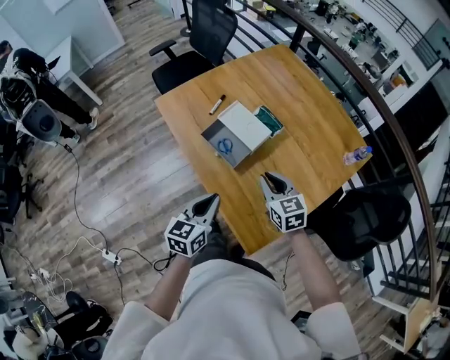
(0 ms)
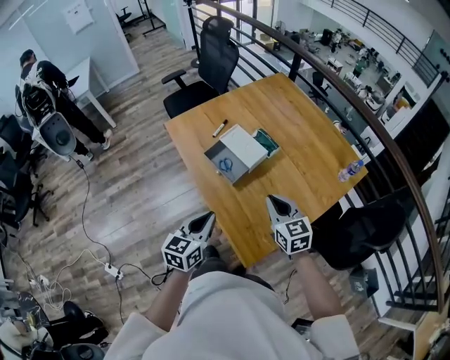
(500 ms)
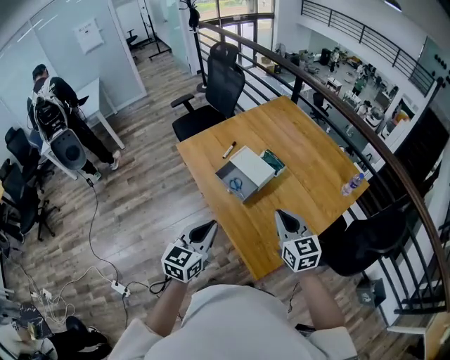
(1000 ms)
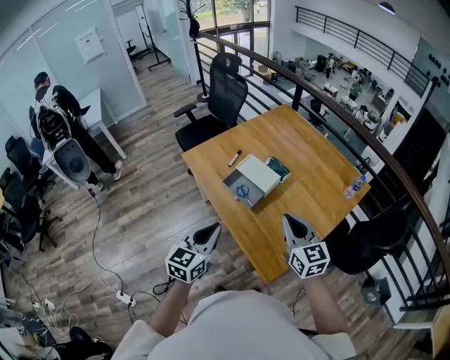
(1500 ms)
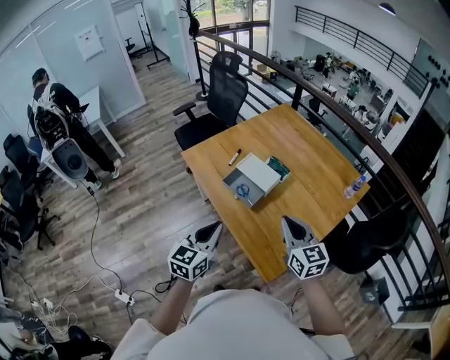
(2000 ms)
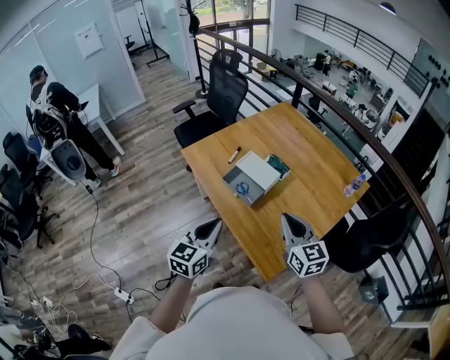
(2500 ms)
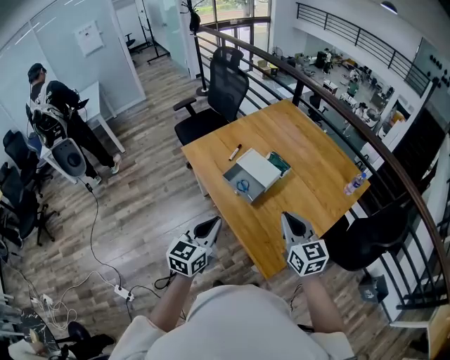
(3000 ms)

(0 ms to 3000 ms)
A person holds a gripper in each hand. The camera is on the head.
0 ms - 1500 ms: The left gripper is displaced upward, backward and to the left by some 15 cm. The right gripper is displaced upward and backward by some 20 cm, and changes its angle by approximately 20 degrees.
1500 ms - 3000 ms: The grippers make only small movements.

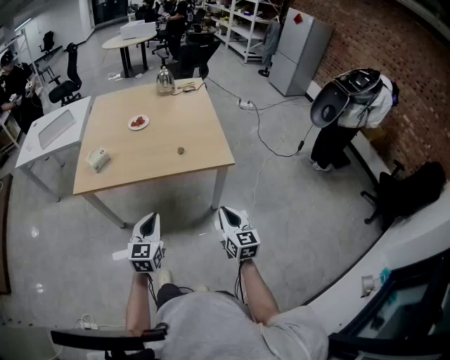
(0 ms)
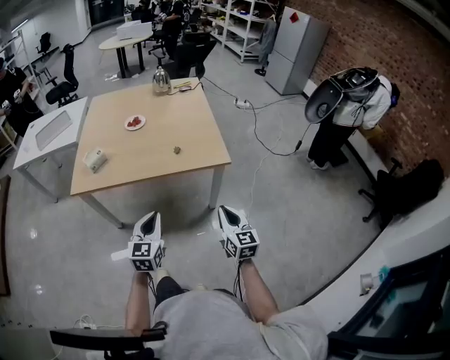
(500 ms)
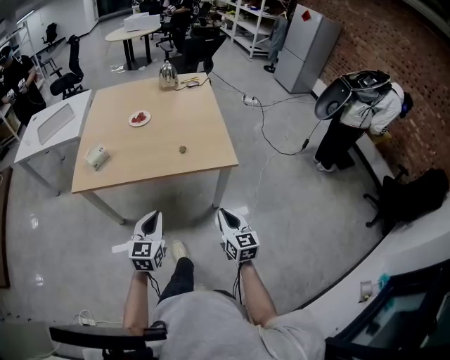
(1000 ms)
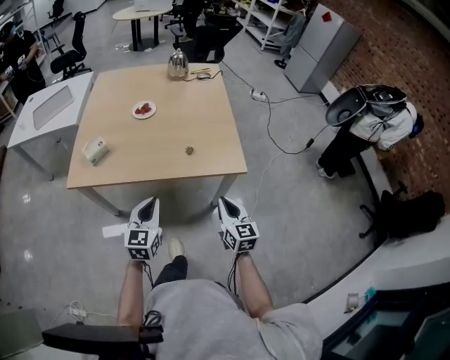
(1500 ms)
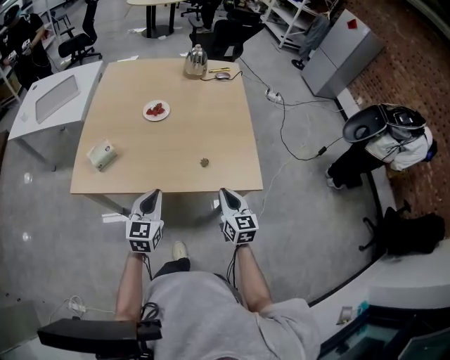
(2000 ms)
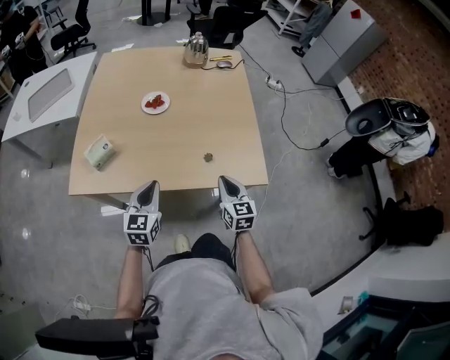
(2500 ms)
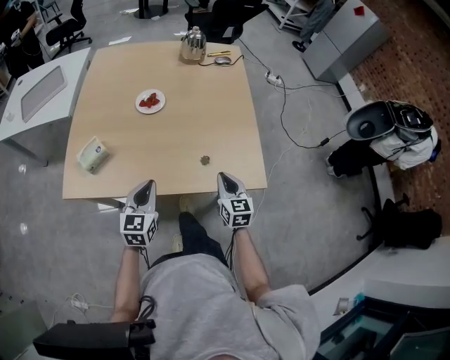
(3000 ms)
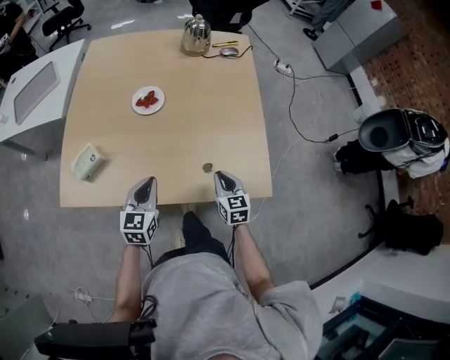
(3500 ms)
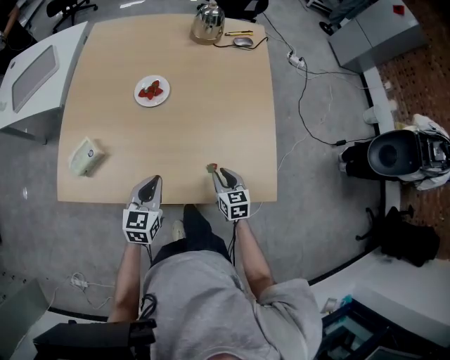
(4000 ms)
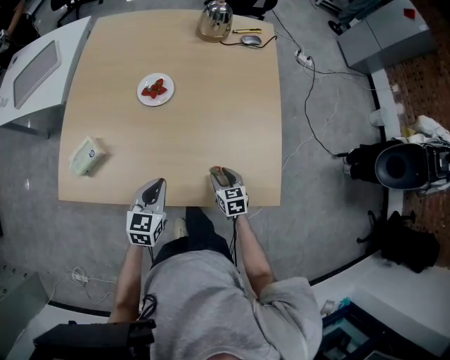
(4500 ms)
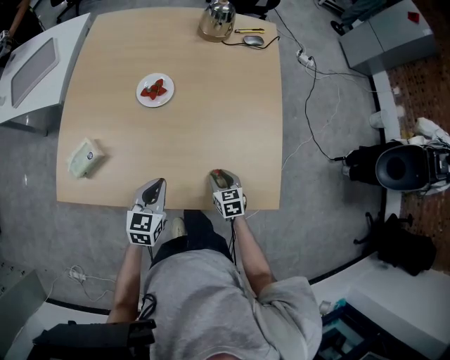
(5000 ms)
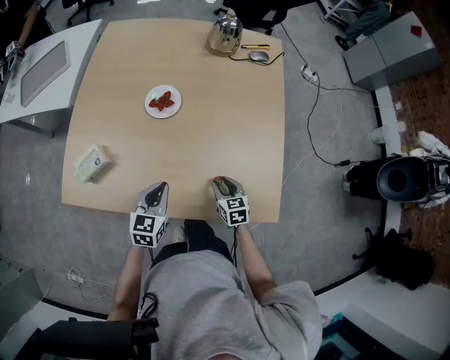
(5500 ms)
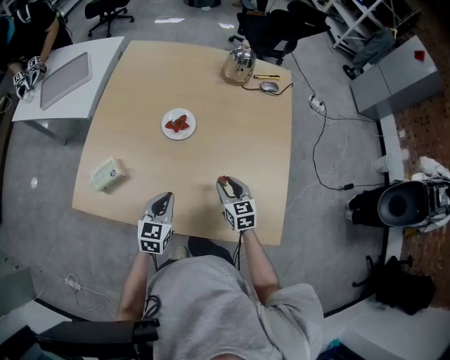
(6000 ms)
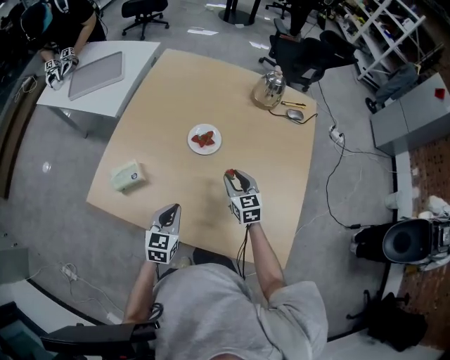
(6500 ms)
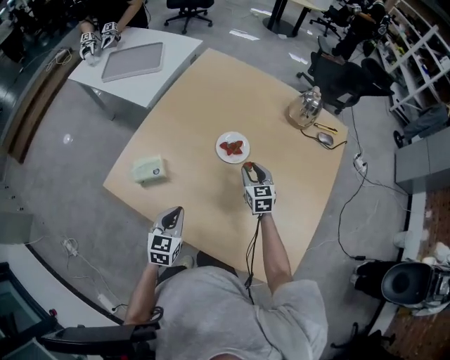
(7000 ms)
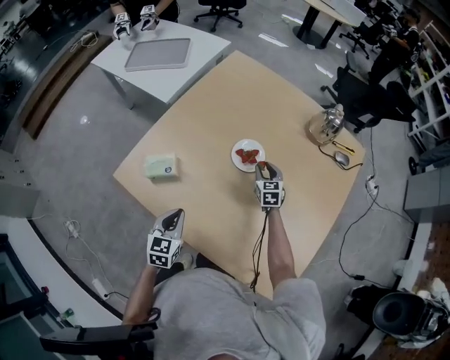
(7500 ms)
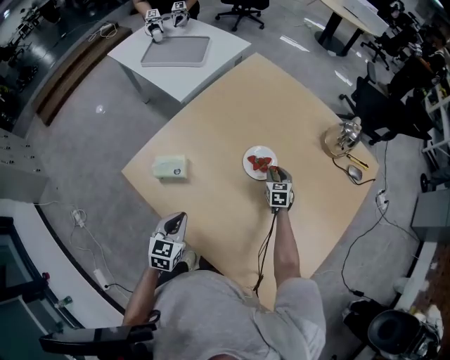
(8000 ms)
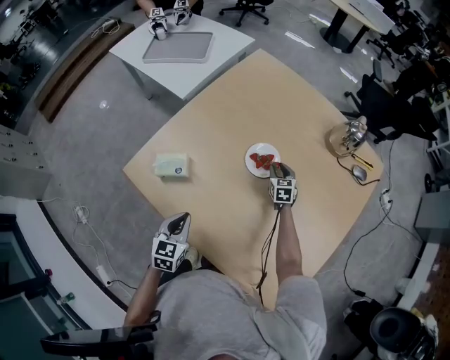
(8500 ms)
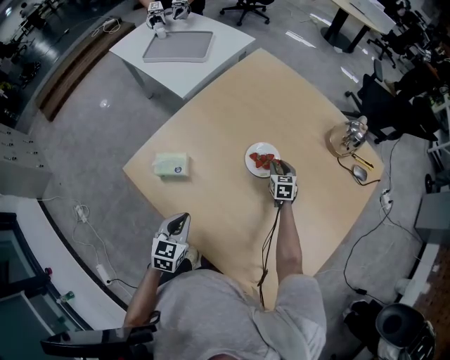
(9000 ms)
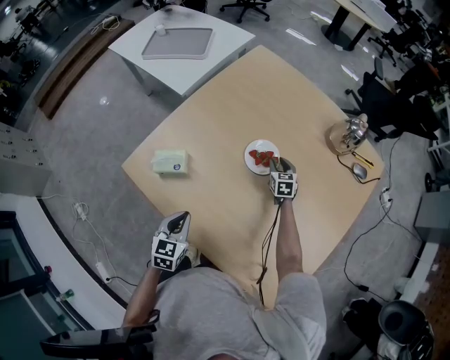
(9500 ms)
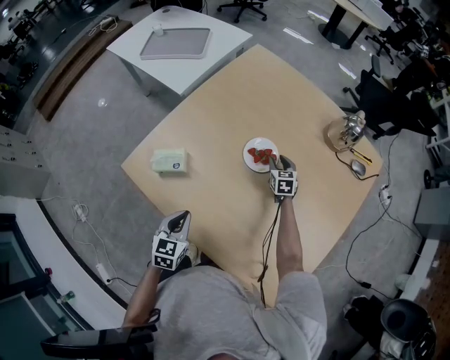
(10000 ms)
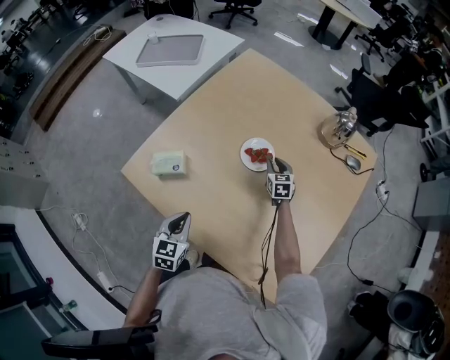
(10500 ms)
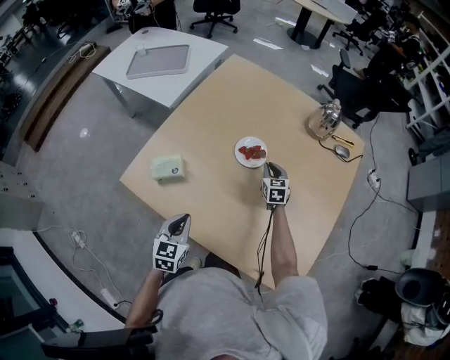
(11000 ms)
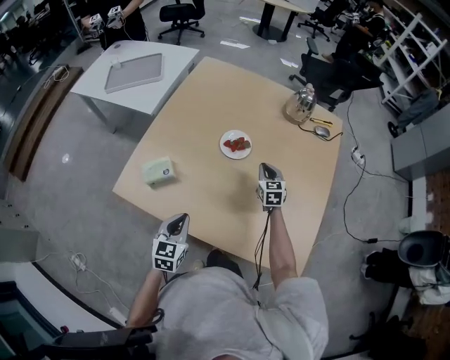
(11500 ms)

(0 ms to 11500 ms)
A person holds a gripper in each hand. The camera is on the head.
0 ms - 2000 ms: Both grippers travel together forward, some 25 cm.
2000 ms - 4000 ms: Both grippers travel together forward and downward, some 20 cm. The right gripper swivels roughly 20 degrees, and opens.
4000 ms - 6000 ms: The left gripper moves some 5 cm; the right gripper shifts roughly 10 cm forward and upward.
6000 ms - 7500 ms: The right gripper heads forward, covering approximately 25 cm, while the left gripper goes some 10 cm to the left, and changes its angle by approximately 30 degrees.
7500 ms - 9500 ms: The right gripper travels forward and downward by some 10 cm.
9500 ms - 11500 ms: The right gripper heads backward and upward, covering roughly 20 cm, and closes its fingers. The left gripper moves some 5 cm.

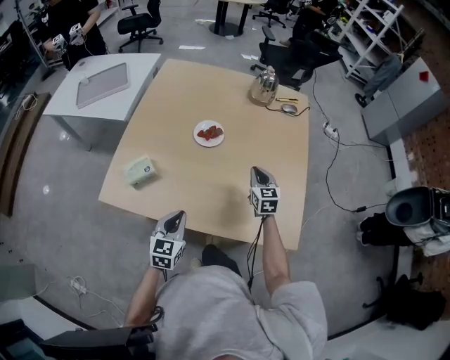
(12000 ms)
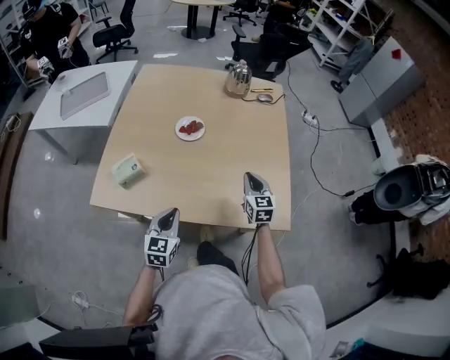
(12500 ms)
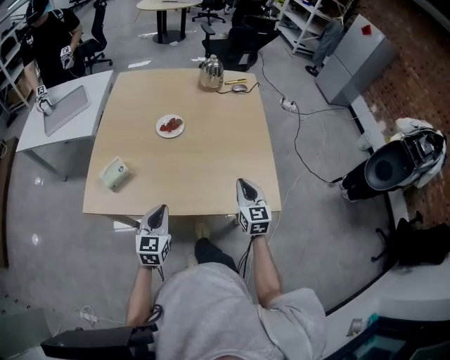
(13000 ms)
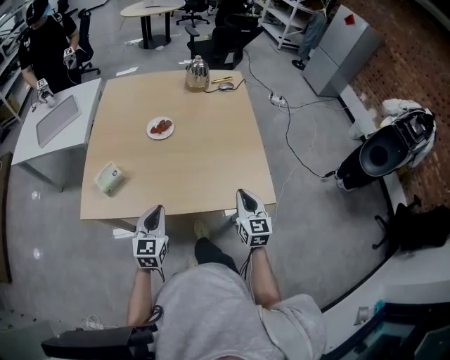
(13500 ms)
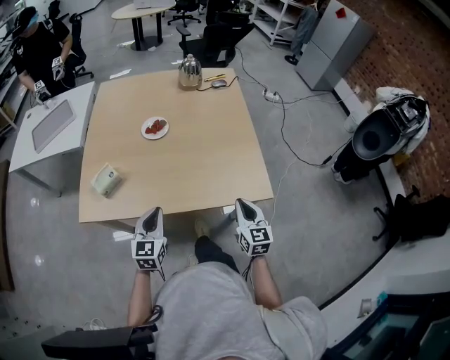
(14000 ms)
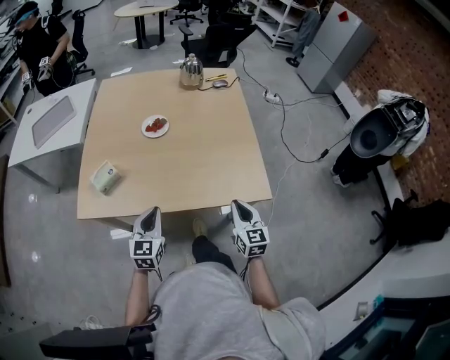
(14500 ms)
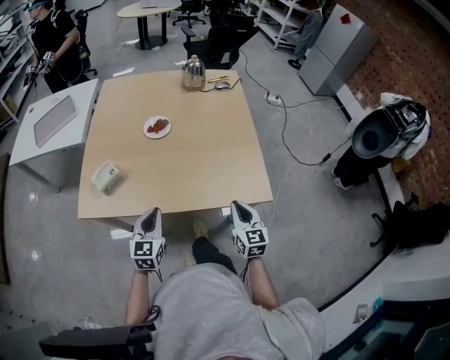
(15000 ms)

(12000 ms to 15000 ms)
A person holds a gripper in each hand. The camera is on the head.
12000 ms - 13500 ms: The left gripper travels backward by about 5 cm. Meanwhile the right gripper goes some 25 cm backward.
13500 ms - 15000 ms: The right gripper changes place by about 5 cm.

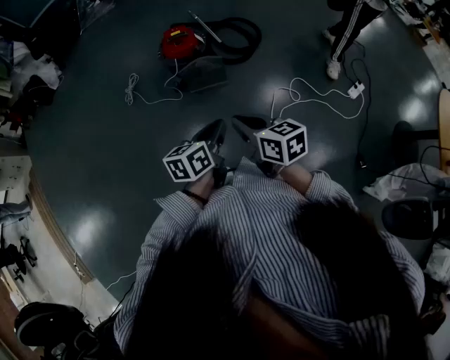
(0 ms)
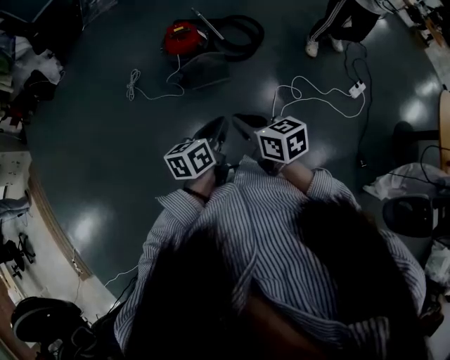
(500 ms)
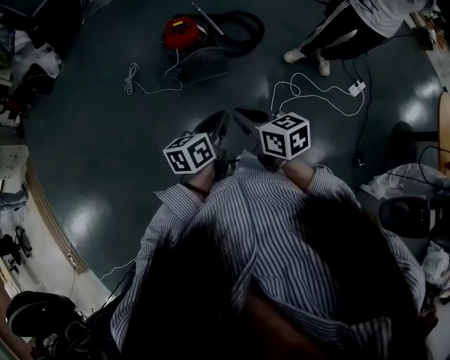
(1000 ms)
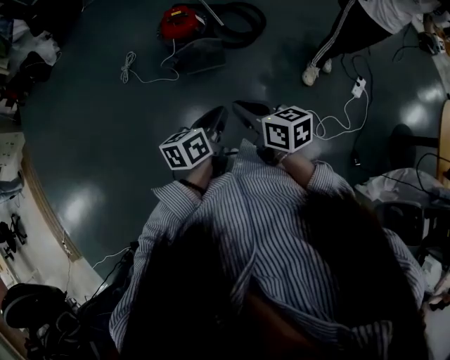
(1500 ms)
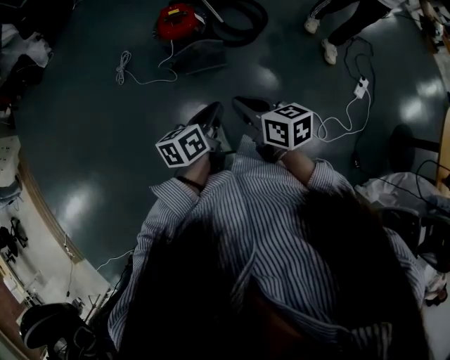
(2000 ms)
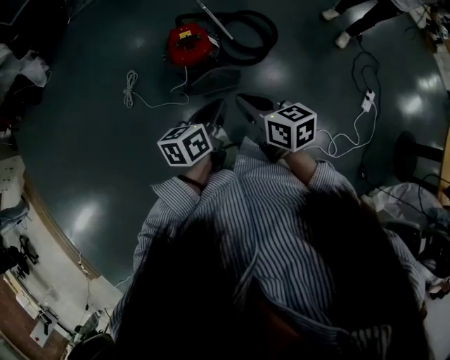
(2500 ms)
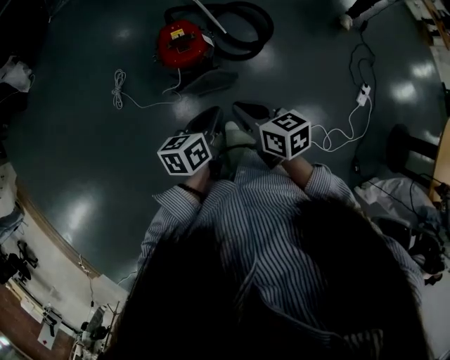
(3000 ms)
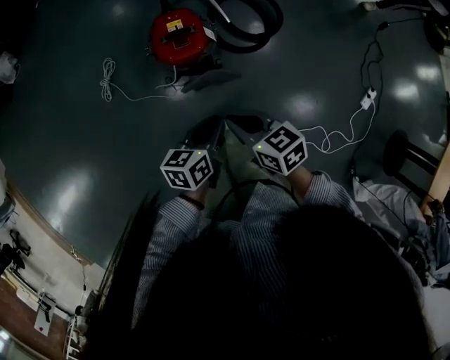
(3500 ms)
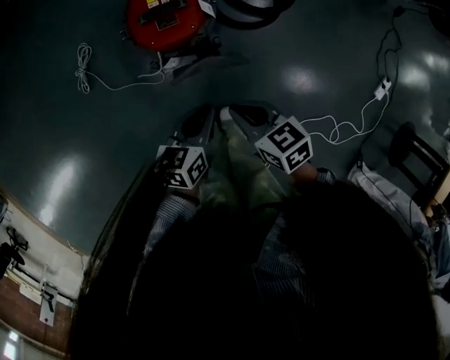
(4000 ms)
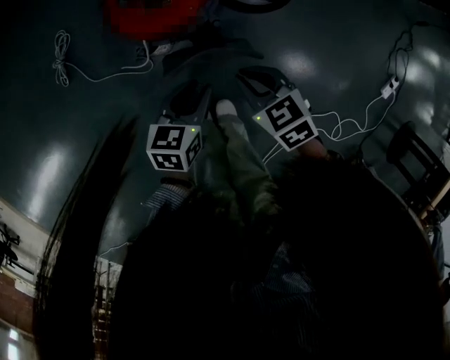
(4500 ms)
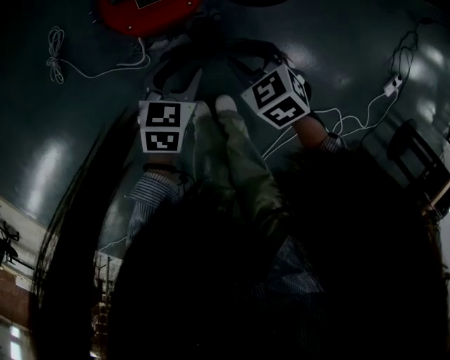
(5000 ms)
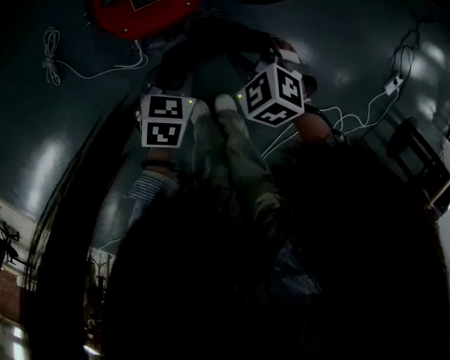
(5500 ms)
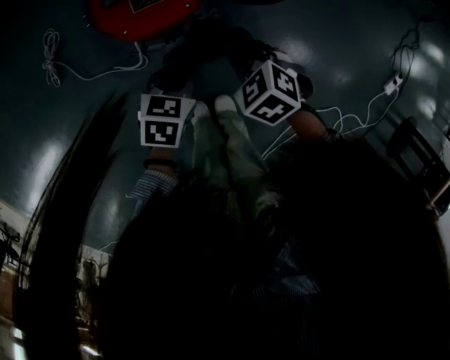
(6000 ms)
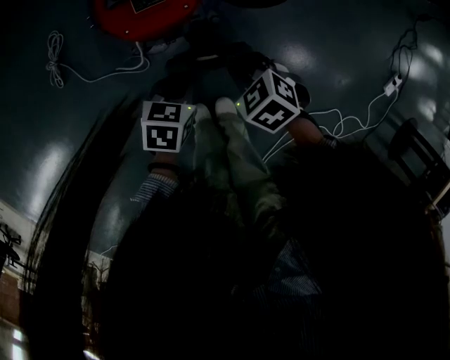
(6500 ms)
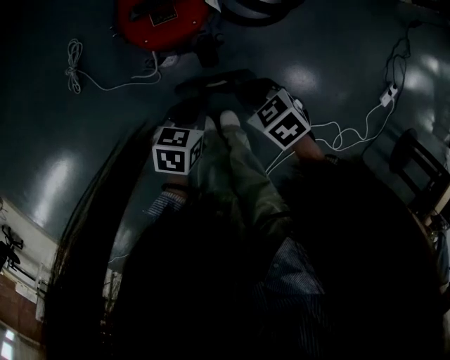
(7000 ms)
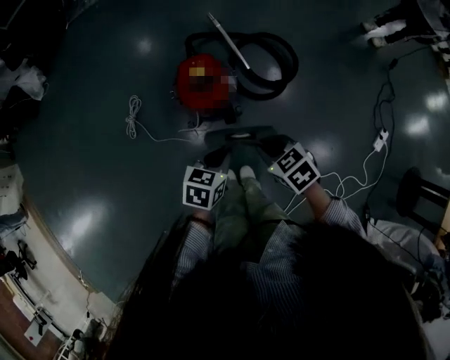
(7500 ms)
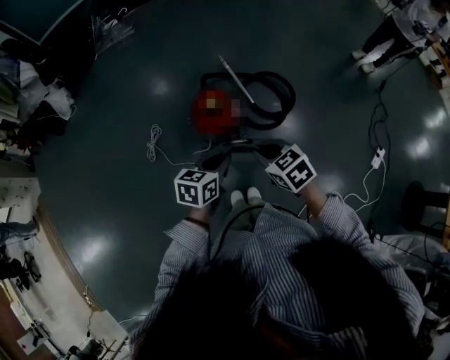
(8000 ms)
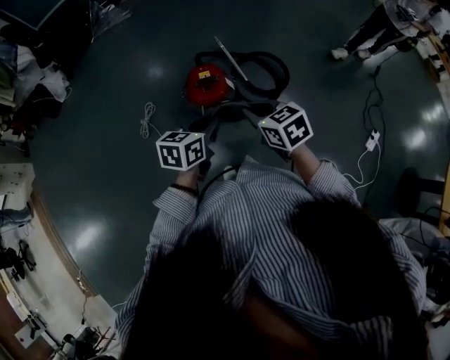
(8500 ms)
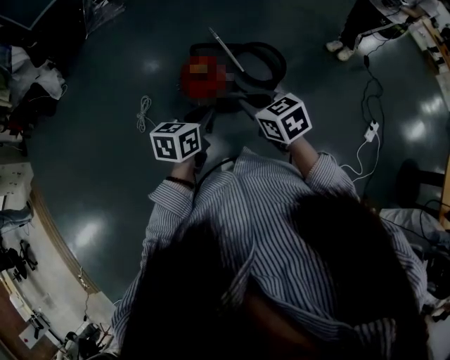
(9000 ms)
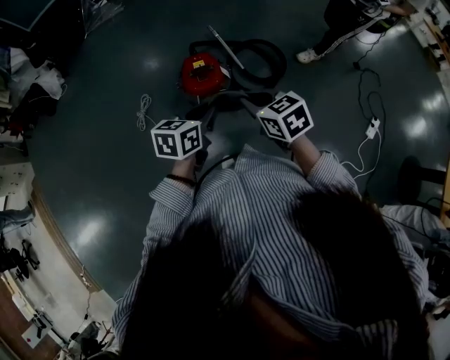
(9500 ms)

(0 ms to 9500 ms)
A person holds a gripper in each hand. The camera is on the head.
0 ms - 2000 ms: The two grippers go some 5 cm forward.
2000 ms - 4000 ms: Both grippers move forward and downward, approximately 40 cm. The right gripper swivels some 20 degrees.
4000 ms - 5500 ms: Both grippers travel together downward and forward, some 20 cm. The right gripper turns by about 50 degrees, and opens its fingers; the left gripper turns by roughly 30 degrees, and opens, then closes once more.
5500 ms - 7500 ms: Both grippers travel together upward, approximately 30 cm. The right gripper turns by about 30 degrees, and closes.
7500 ms - 9500 ms: Both grippers move upward, about 20 cm.
